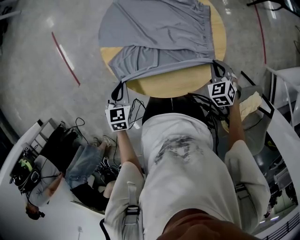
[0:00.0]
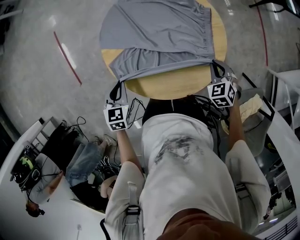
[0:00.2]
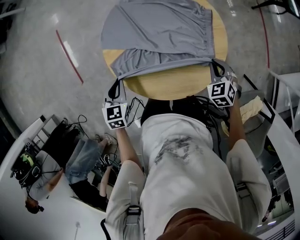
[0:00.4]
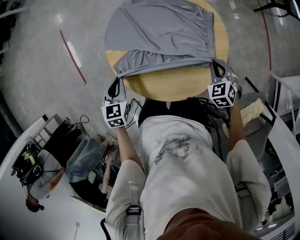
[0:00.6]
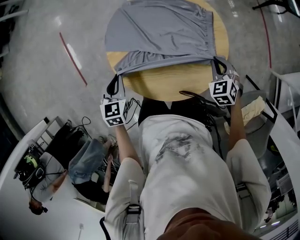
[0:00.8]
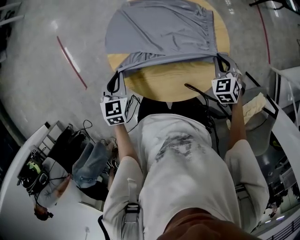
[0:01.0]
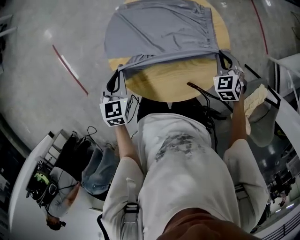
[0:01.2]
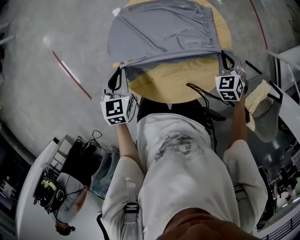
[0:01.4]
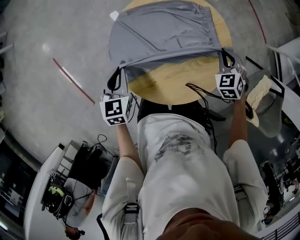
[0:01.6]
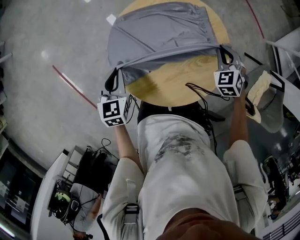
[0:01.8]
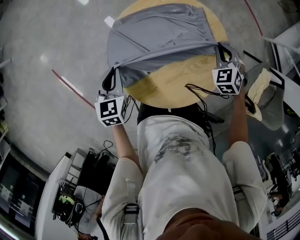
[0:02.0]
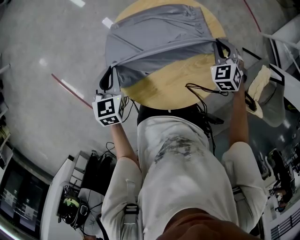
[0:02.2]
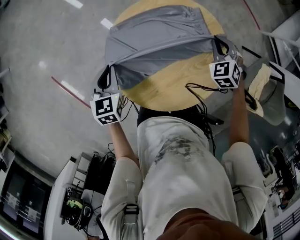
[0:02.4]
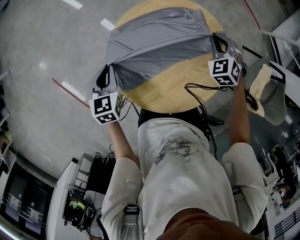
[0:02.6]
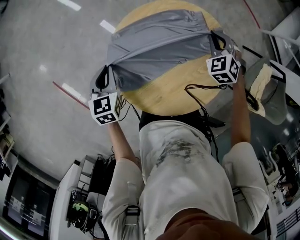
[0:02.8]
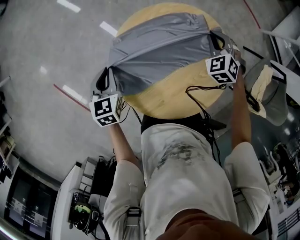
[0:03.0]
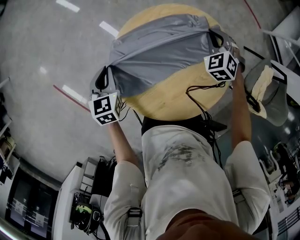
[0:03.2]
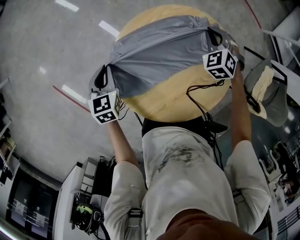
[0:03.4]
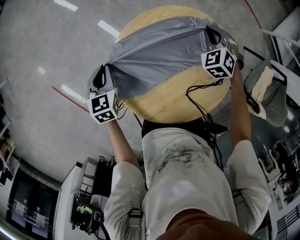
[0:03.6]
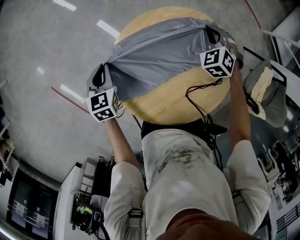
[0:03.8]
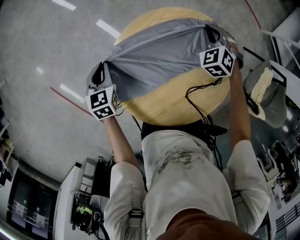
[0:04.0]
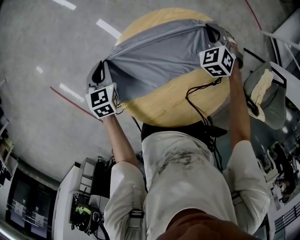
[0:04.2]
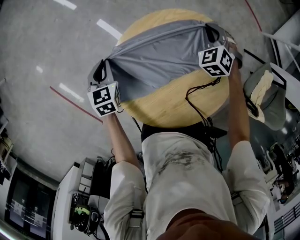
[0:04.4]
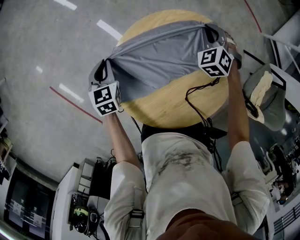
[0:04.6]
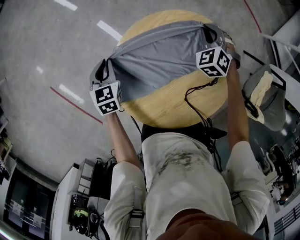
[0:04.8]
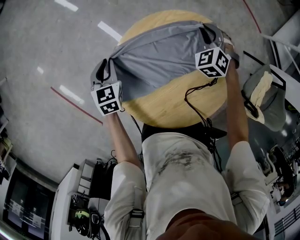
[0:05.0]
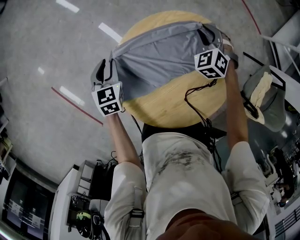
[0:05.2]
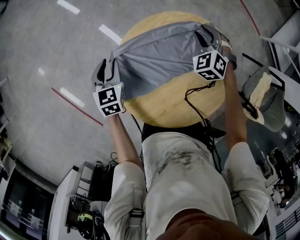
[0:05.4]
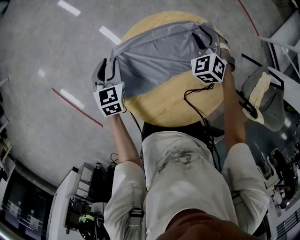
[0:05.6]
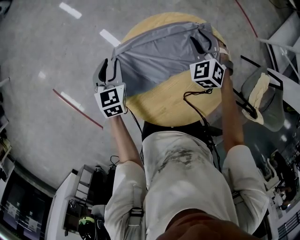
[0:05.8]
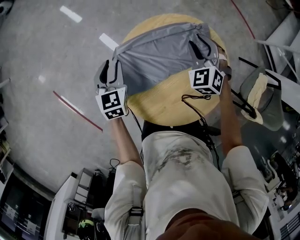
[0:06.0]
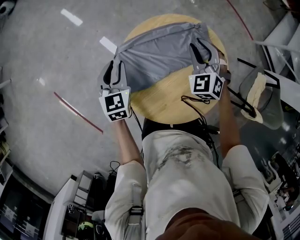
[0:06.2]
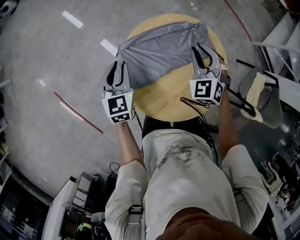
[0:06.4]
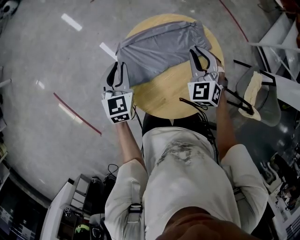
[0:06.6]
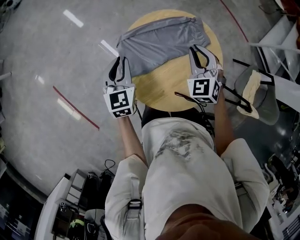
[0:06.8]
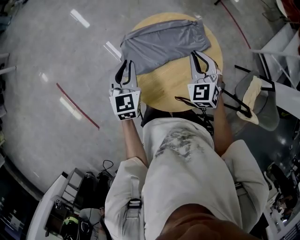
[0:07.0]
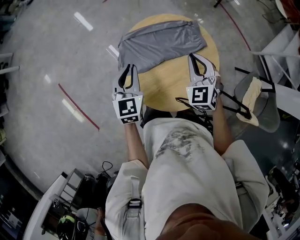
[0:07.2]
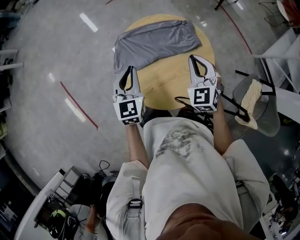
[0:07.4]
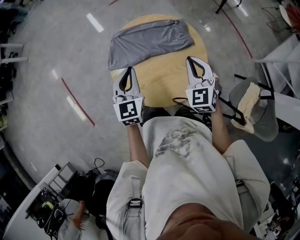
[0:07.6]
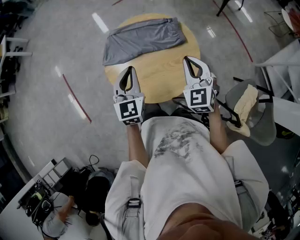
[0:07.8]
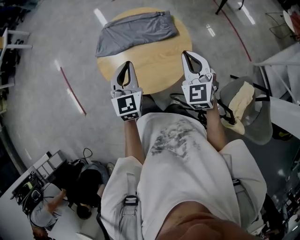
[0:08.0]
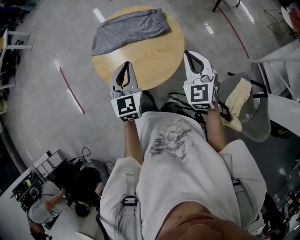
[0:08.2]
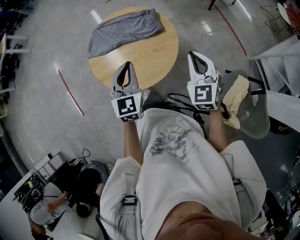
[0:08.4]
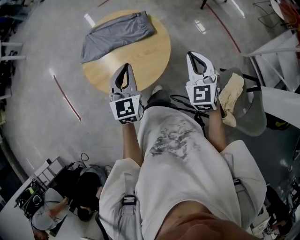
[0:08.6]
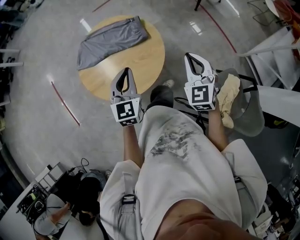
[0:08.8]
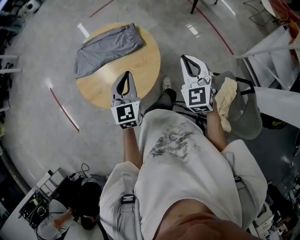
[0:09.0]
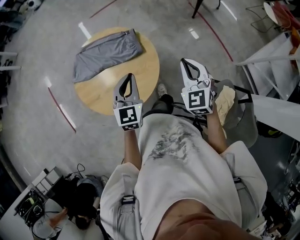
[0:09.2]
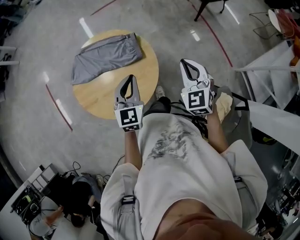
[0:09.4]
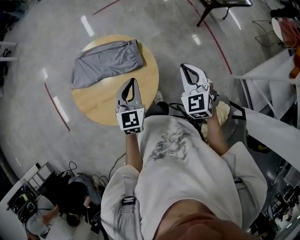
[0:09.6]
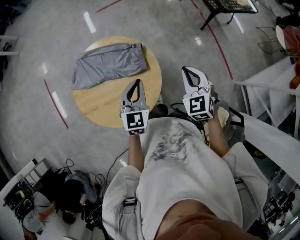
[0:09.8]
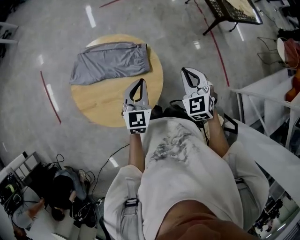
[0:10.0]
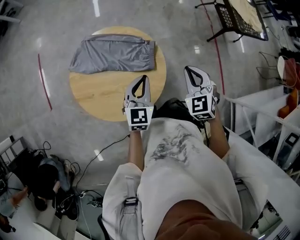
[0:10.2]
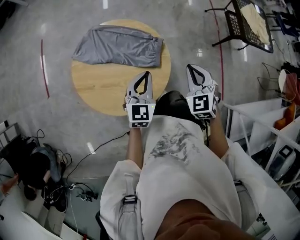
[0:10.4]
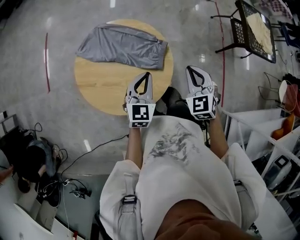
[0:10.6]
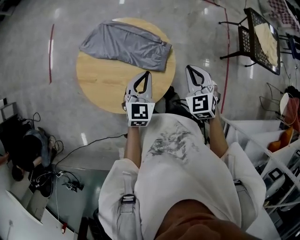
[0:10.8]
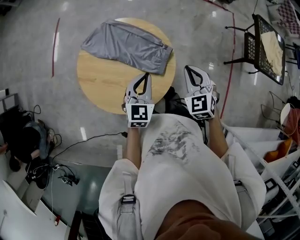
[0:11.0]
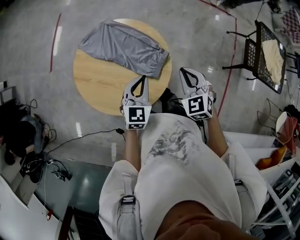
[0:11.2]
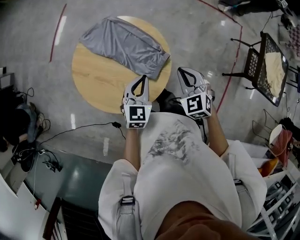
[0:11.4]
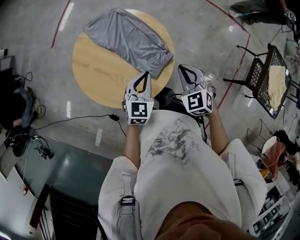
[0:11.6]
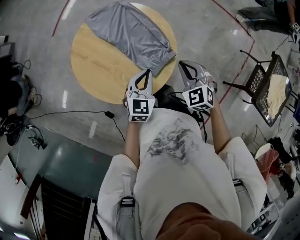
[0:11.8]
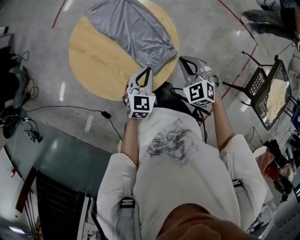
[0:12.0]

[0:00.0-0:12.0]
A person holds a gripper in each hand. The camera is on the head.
0:00.0 to 0:01.6: The right gripper moves some 10 cm, while the left gripper ends up roughly 20 cm from where it was.
0:01.6 to 0:03.0: Both grippers travel together forward and to the left, about 15 cm.
0:03.0 to 0:04.4: The left gripper travels downward and forward by roughly 10 cm. The right gripper travels forward by roughly 5 cm.
0:04.4 to 0:06.0: The left gripper is displaced upward by some 10 cm, and opens up. Meanwhile the right gripper heads upward, backward and to the left, covering about 15 cm, and opens.
0:06.0 to 0:07.6: Both grippers travel together backward, upward and to the right, about 30 cm. The right gripper changes its angle by approximately 20 degrees, and closes up; the left gripper closes up.
0:07.6 to 0:09.0: Both grippers move to the right, approximately 25 cm.
0:09.0 to 0:10.4: The grippers both shift forward by about 20 cm. The right gripper turns by roughly 30 degrees.
0:10.4 to 0:12.0: The right gripper changes place by about 20 cm, and turns by approximately 50 degrees; the left gripper is displaced downward by about 10 cm, and changes its angle by roughly 30 degrees.

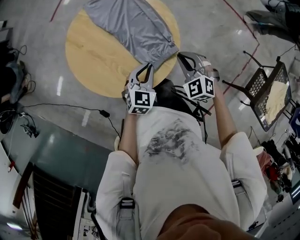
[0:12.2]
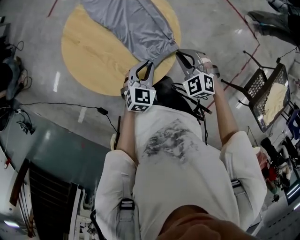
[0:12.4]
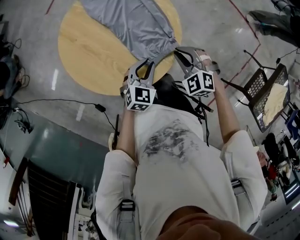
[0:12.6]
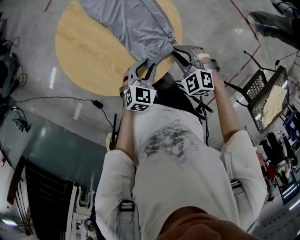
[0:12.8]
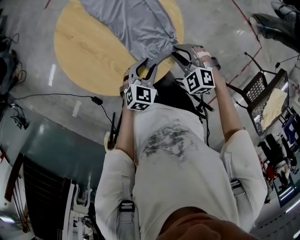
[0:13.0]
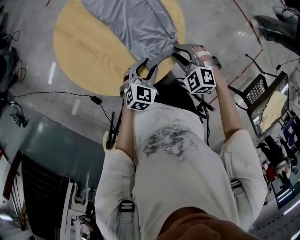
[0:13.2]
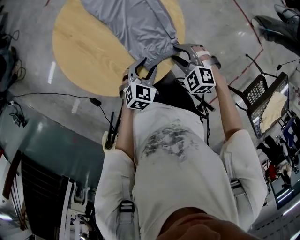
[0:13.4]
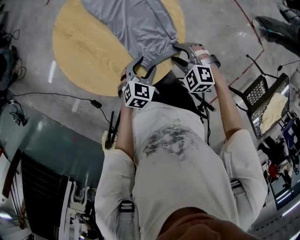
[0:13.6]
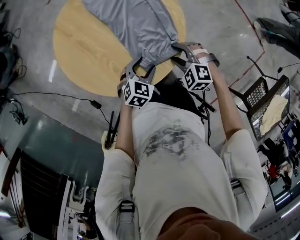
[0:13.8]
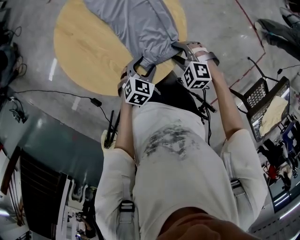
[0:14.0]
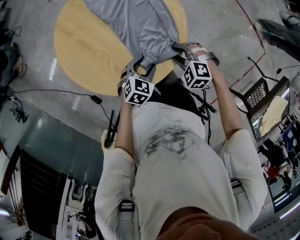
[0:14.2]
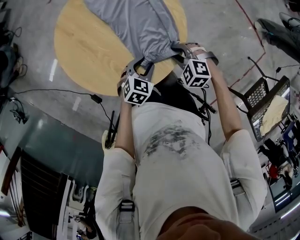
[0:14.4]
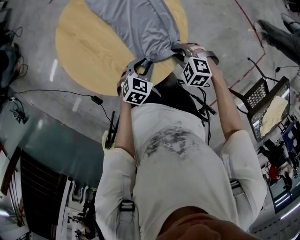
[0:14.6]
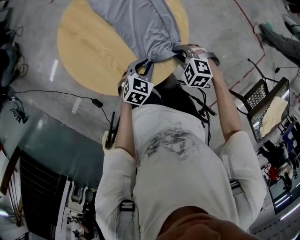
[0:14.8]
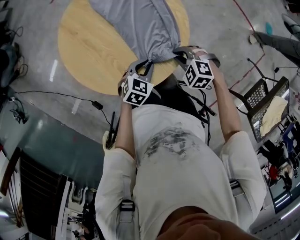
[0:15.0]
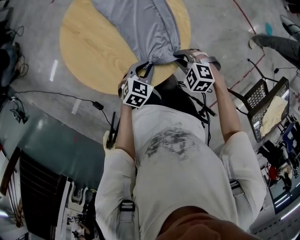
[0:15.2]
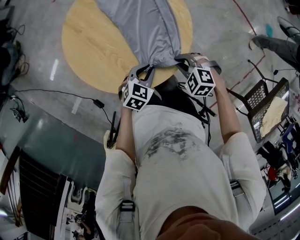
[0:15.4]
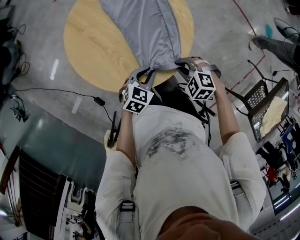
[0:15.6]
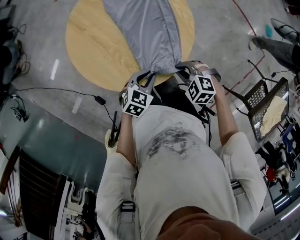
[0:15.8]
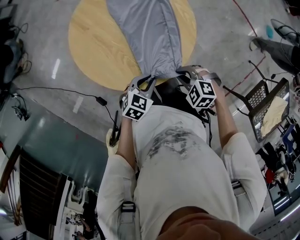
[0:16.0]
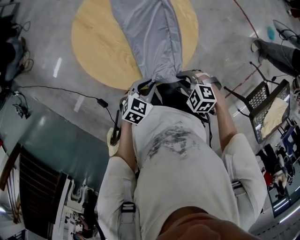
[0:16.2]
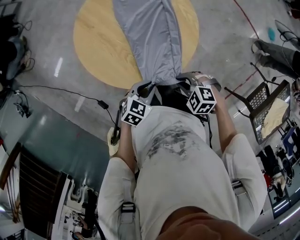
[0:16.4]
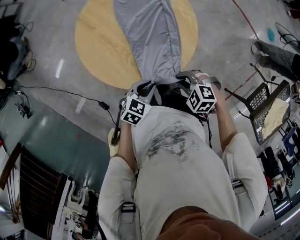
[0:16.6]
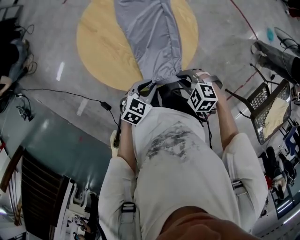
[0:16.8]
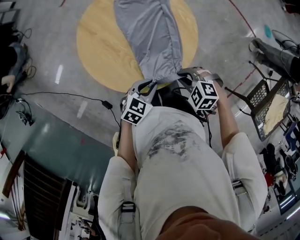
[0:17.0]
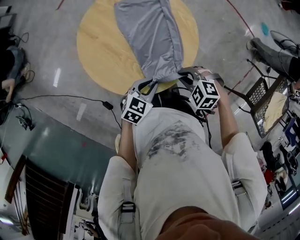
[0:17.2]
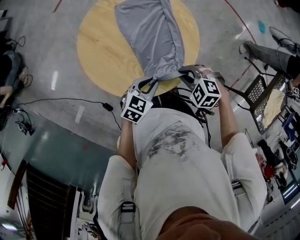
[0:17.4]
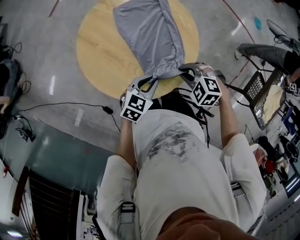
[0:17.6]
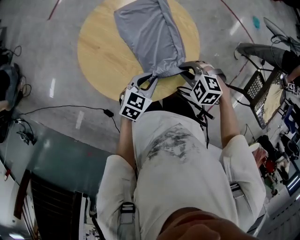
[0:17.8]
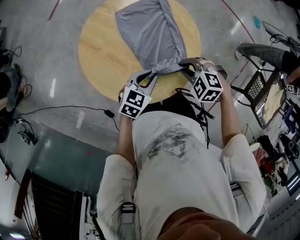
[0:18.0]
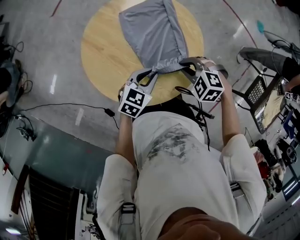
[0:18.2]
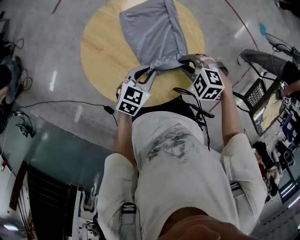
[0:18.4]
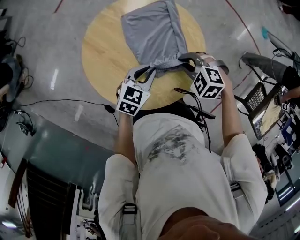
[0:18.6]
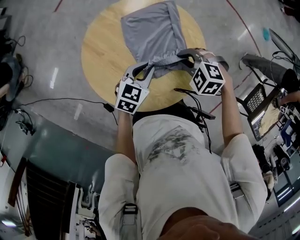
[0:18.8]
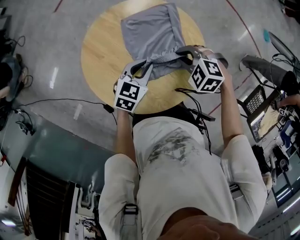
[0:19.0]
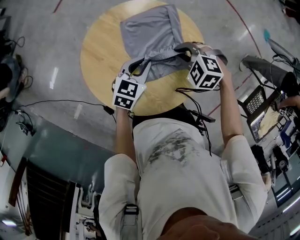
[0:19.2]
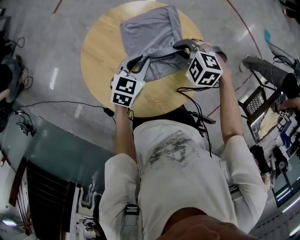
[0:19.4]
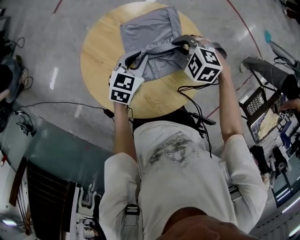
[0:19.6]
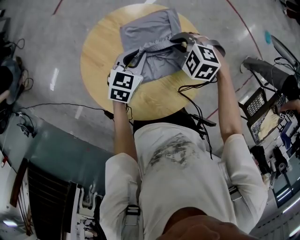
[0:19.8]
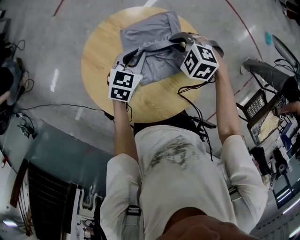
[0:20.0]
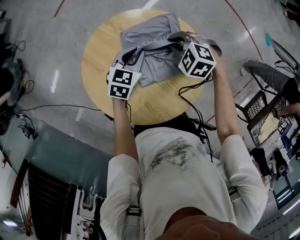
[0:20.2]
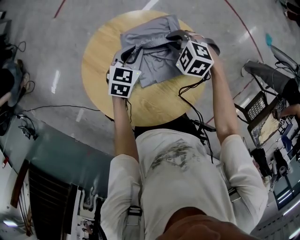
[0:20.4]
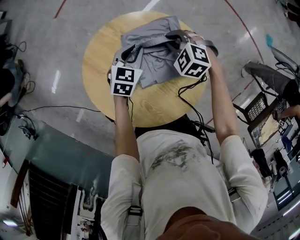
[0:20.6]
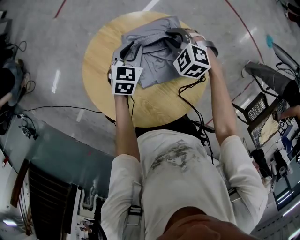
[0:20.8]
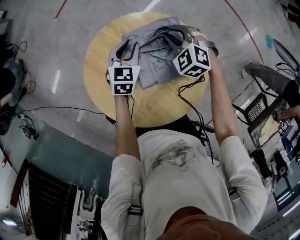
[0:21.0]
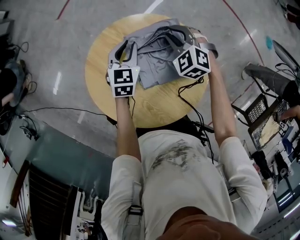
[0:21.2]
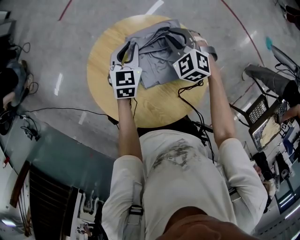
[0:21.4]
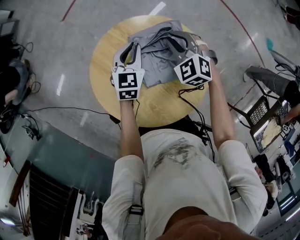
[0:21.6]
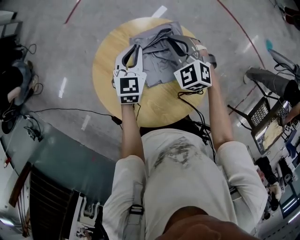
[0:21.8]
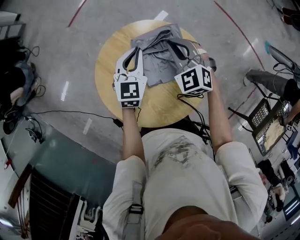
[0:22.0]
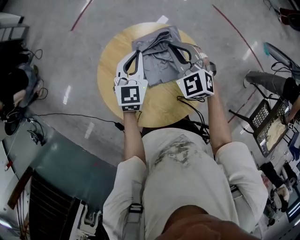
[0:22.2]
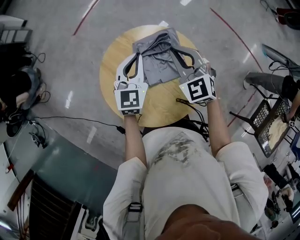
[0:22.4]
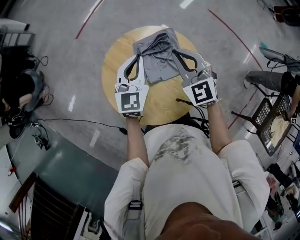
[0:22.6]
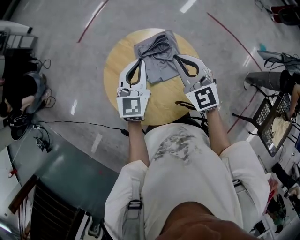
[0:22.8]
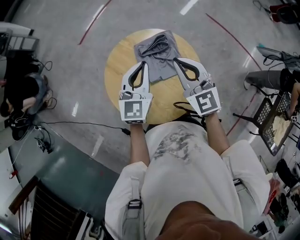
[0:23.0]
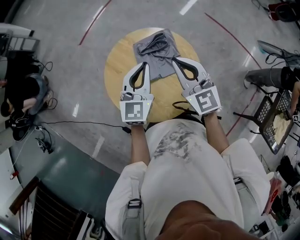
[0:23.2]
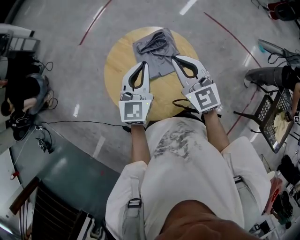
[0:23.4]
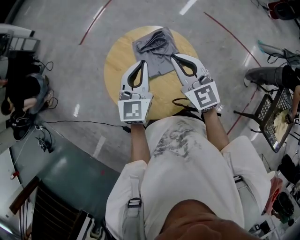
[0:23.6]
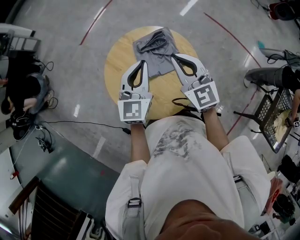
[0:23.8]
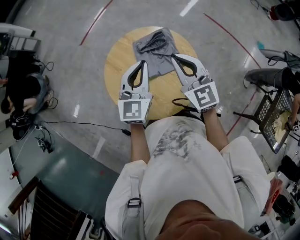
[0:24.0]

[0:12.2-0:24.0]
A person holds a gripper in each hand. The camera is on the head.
0:12.2 to 0:13.6: Both grippers move downward, roughly 10 cm. The right gripper rotates roughly 30 degrees, and opens its fingers, while the left gripper opens up.
0:13.6 to 0:15.2: The left gripper closes, while the right gripper closes.
0:15.2 to 0:16.6: The right gripper moves about 15 cm, while the left gripper changes place by approximately 10 cm.
0:16.6 to 0:18.2: The right gripper changes place by roughly 15 cm. The left gripper shifts by some 15 cm.
0:18.2 to 0:19.6: The left gripper changes place by about 15 cm. The right gripper ends up roughly 20 cm from where it was.
0:19.6 to 0:21.0: Both grippers move forward, about 10 cm. The right gripper changes its angle by some 20 degrees.
0:21.0 to 0:22.6: The right gripper heads upward and backward, covering about 25 cm, angles its fingers upward, by roughly 30 degrees, and closes. The left gripper heads upward, covering about 25 cm, swivels some 30 degrees, and closes its fingers.
0:22.6 to 0:24.0: The grippers both shift backward and upward by some 10 cm.
